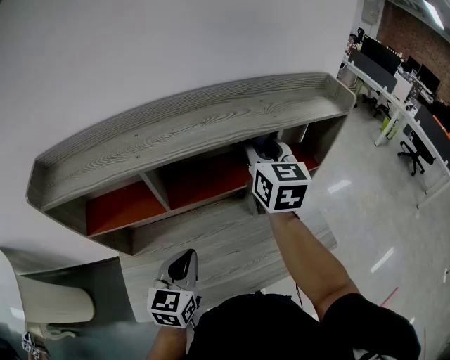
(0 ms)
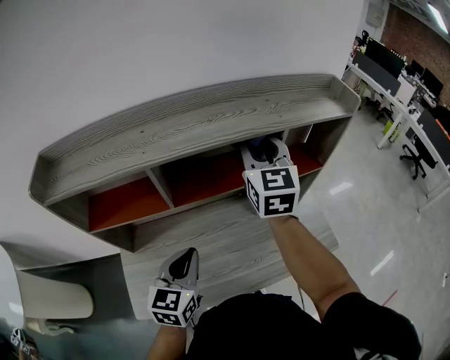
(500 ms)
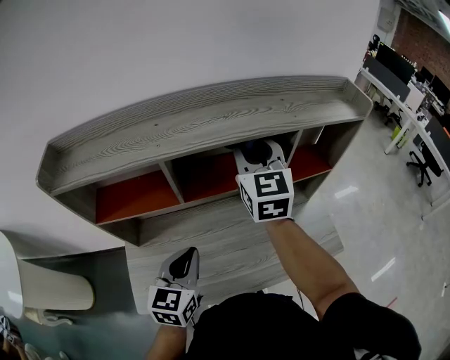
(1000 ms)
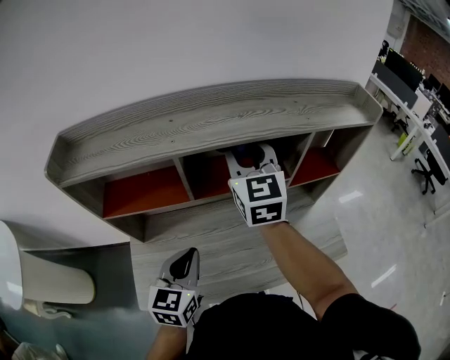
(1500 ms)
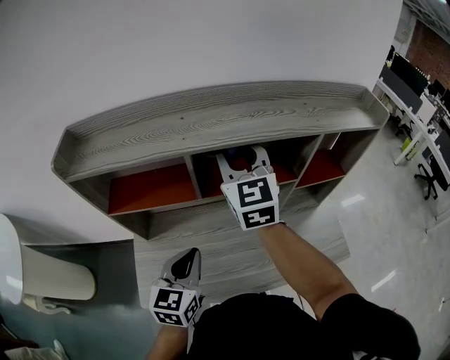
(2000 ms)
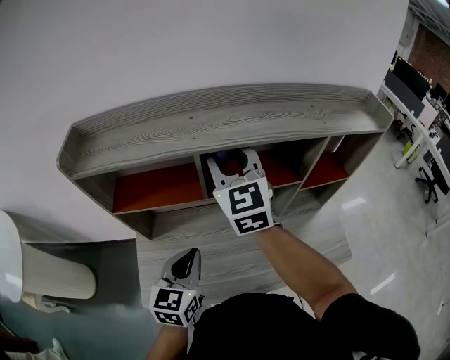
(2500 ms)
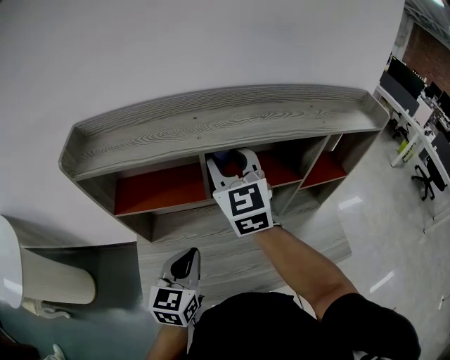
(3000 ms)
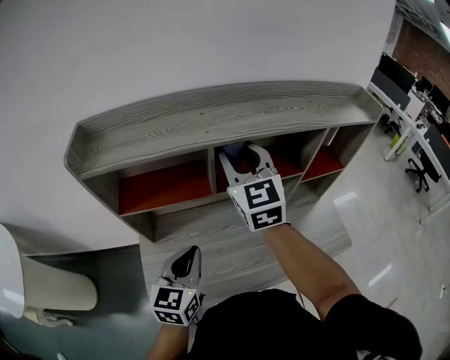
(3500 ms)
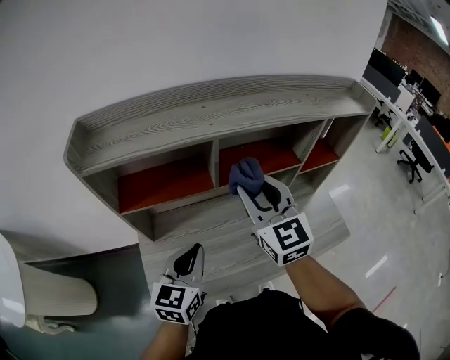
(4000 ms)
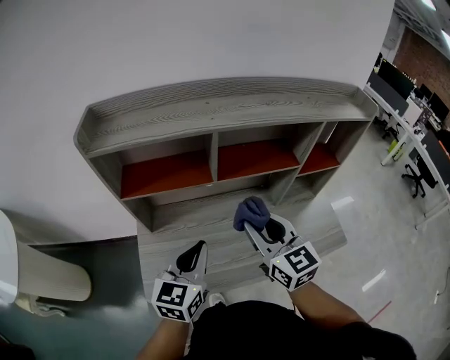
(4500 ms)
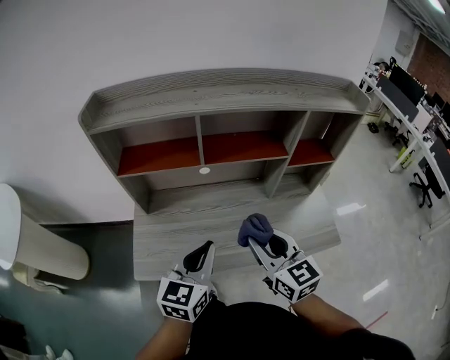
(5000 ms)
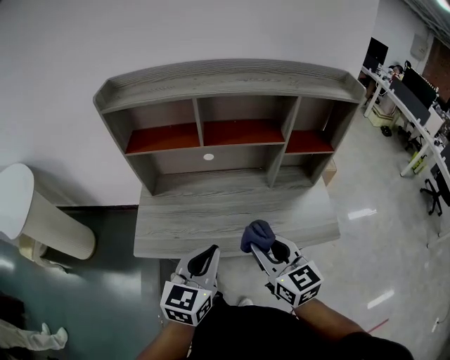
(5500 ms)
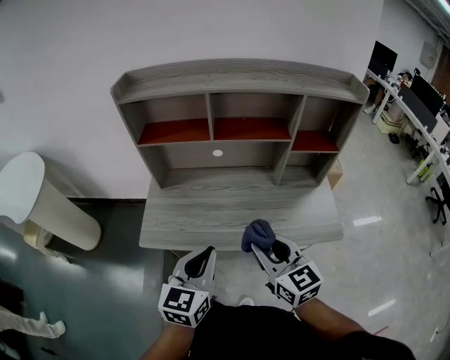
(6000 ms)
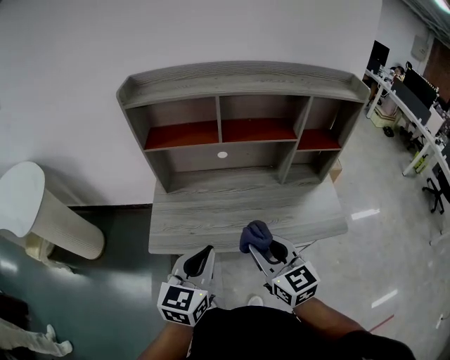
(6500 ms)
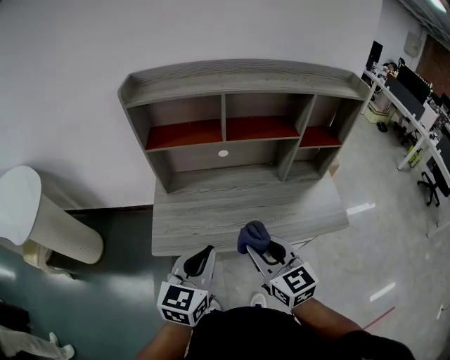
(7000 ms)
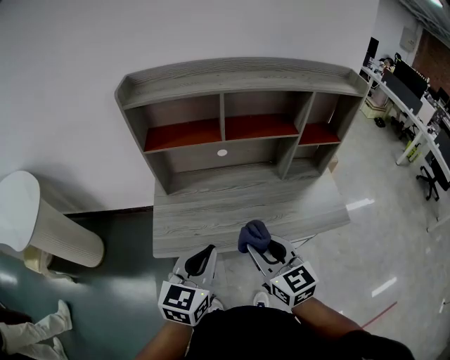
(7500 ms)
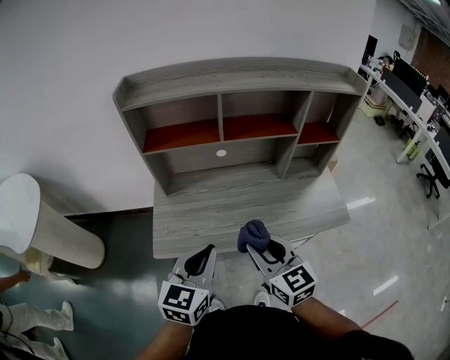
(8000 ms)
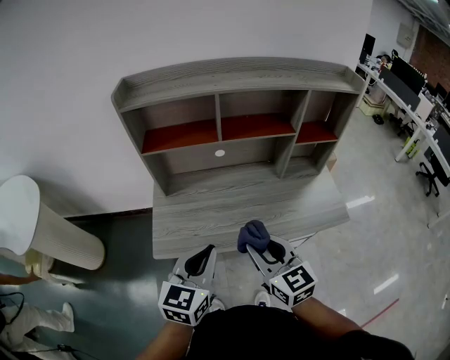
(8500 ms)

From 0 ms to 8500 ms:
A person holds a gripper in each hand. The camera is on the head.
From 0 ms to 2000 ms: The left gripper heads to the left, covering some 5 cm; the right gripper heads to the left, covering about 15 cm, and rotates about 20 degrees.
From 2000 ms to 4000 ms: The right gripper is displaced backward and downward by about 10 cm, while the left gripper travels to the left by roughly 5 cm.
From 4000 ms to 6500 ms: Both grippers travel together backward, about 25 cm. The right gripper swivels roughly 30 degrees.
From 6500 ms to 8500 ms: The grippers move only a little.

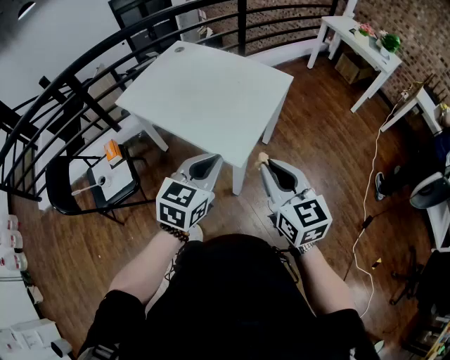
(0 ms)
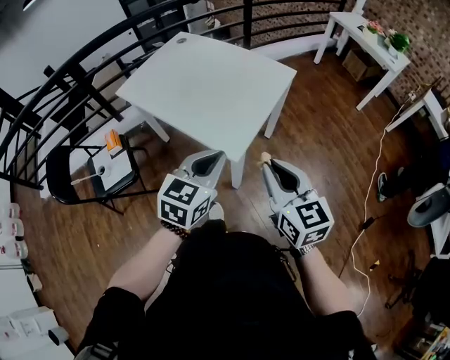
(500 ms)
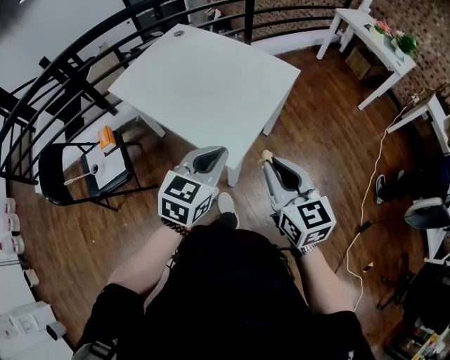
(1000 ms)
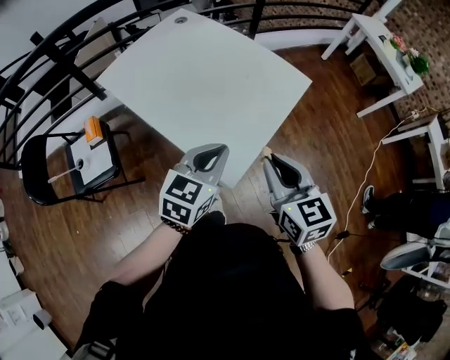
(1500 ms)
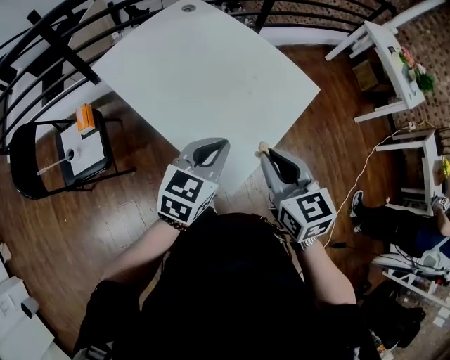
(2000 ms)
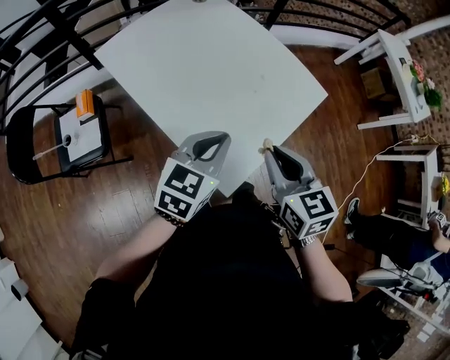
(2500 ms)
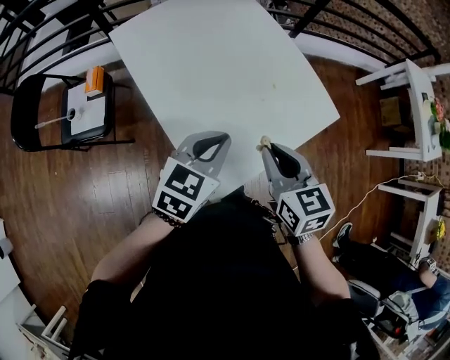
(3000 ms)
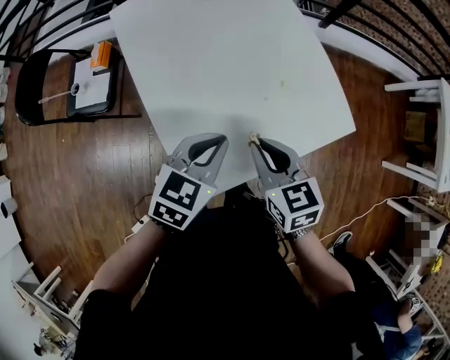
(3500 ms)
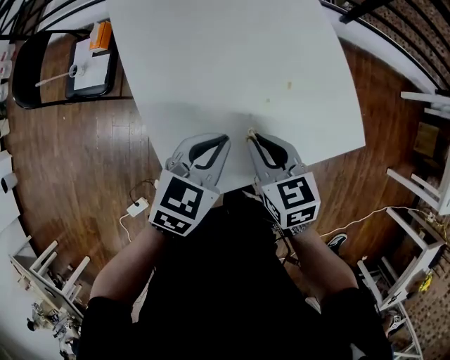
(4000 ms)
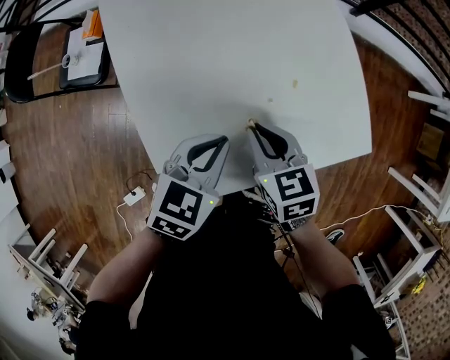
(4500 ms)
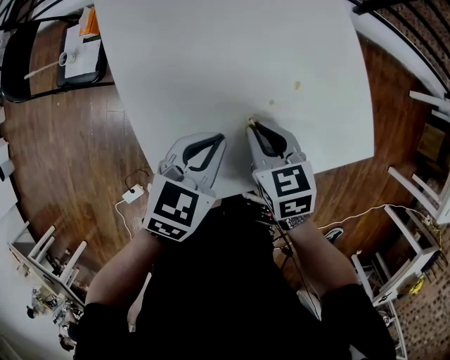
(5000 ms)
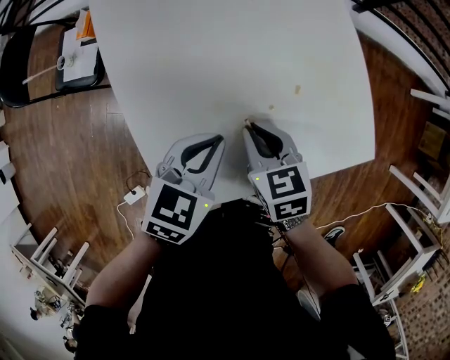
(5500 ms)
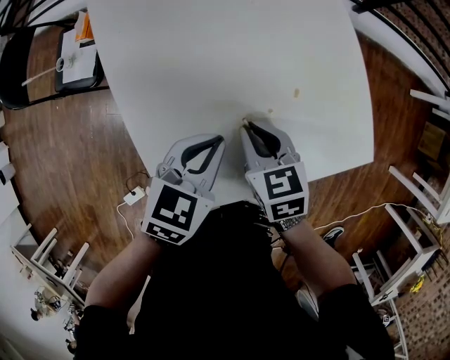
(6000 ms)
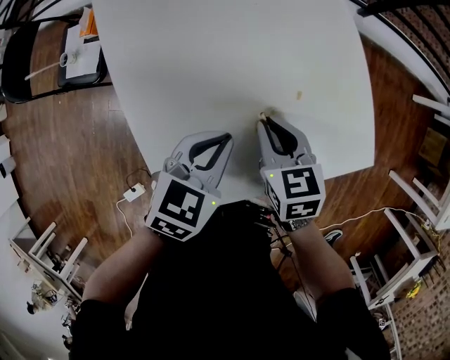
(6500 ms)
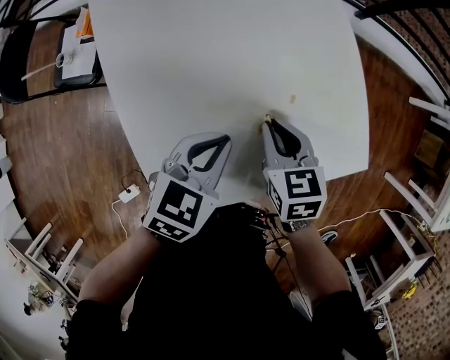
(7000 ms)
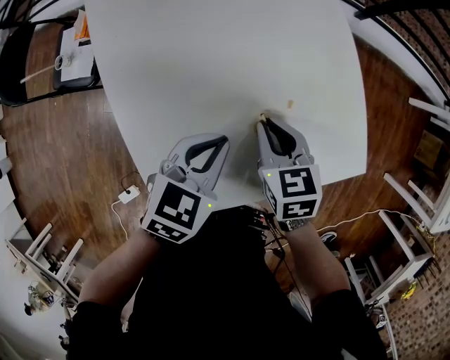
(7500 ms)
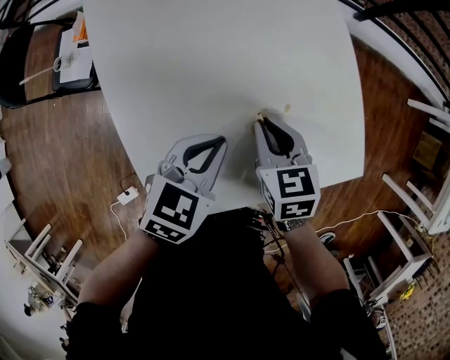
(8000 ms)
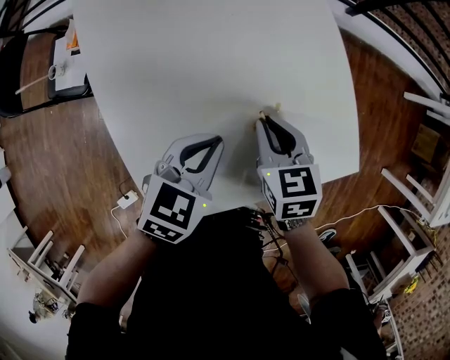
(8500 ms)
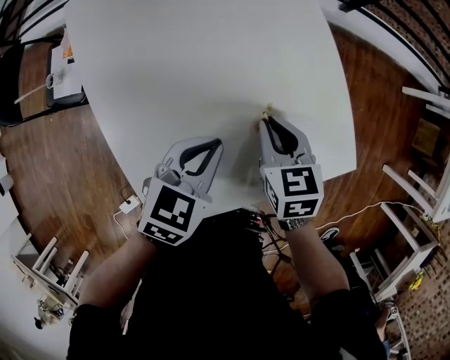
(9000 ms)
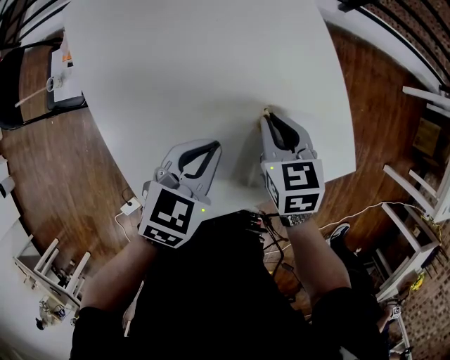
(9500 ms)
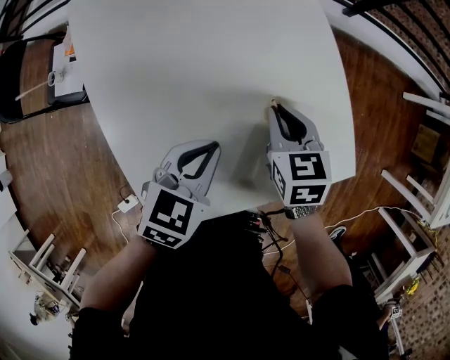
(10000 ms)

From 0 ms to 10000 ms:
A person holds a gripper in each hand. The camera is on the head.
From 0 ms to 2000 ms: Both grippers travel together forward, roughly 20 cm.
From 2000 ms to 4000 ms: The right gripper goes roughly 15 cm downward, and turns by about 40 degrees, while the left gripper changes place by some 15 cm, and turns by approximately 30 degrees.
From 4000 ms to 6000 ms: The left gripper changes place by approximately 5 cm. The right gripper shifts roughly 10 cm downward and forward.
From 6000 ms to 8000 ms: The right gripper moves forward, roughly 5 cm.
From 8000 ms to 10000 ms: The right gripper heads forward and to the right, covering some 10 cm.

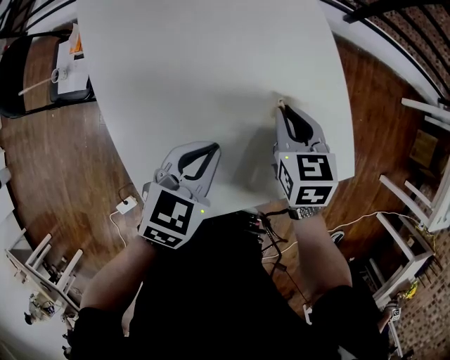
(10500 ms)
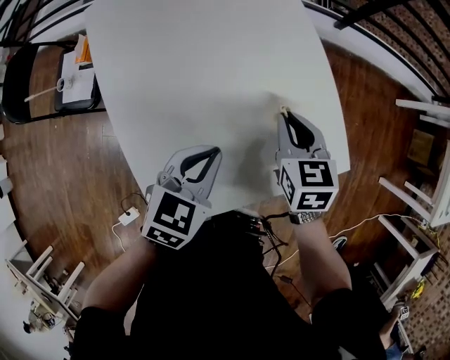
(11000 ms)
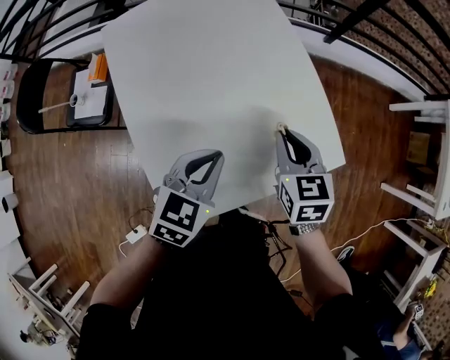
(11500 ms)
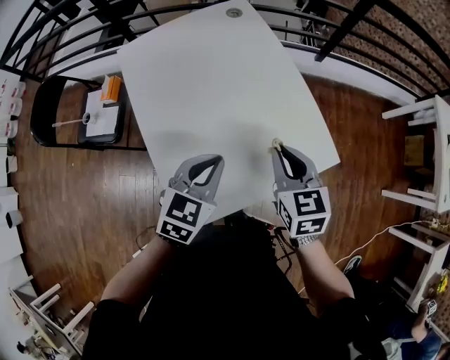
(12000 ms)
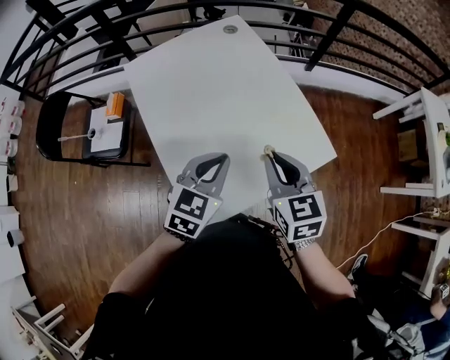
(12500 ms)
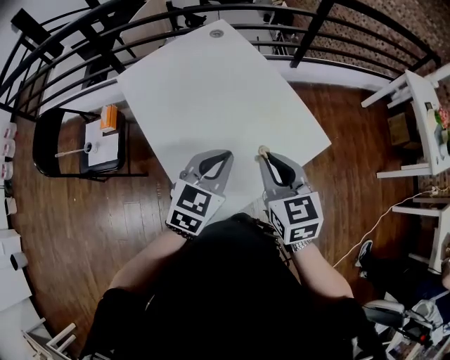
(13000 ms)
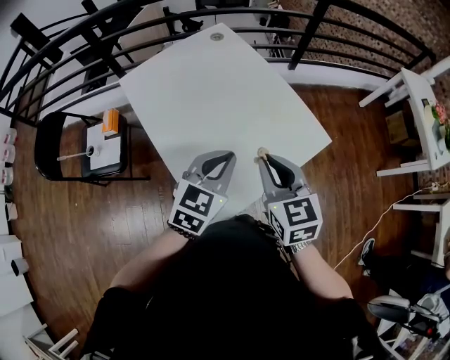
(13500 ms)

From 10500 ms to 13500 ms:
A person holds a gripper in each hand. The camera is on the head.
From 10500 ms to 12000 ms: The left gripper shifts approximately 10 cm upward and backward, while the right gripper moves upward and backward, some 20 cm.
From 12000 ms to 13500 ms: The right gripper shifts about 15 cm backward, upward and to the left. Meanwhile the left gripper goes about 5 cm upward.

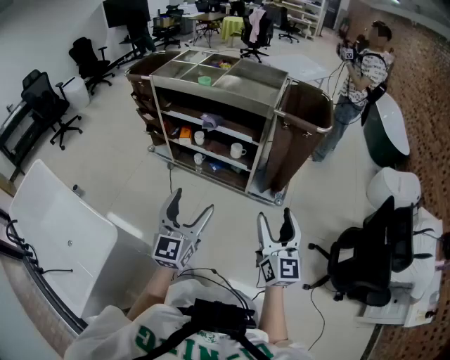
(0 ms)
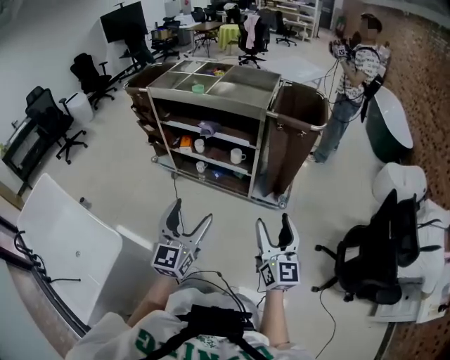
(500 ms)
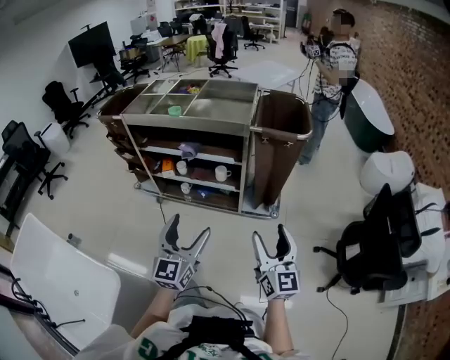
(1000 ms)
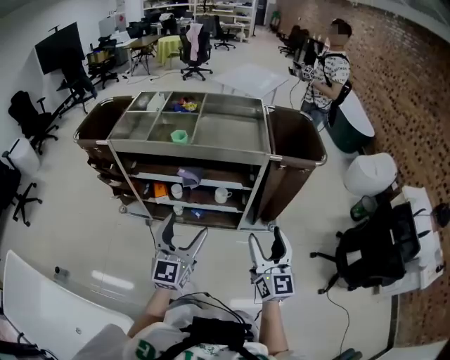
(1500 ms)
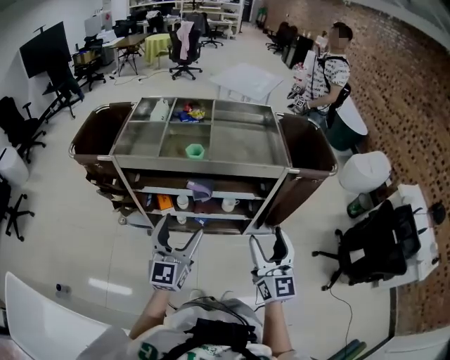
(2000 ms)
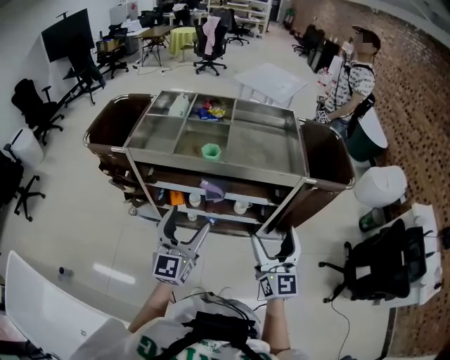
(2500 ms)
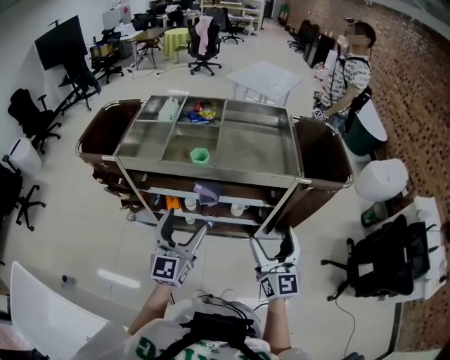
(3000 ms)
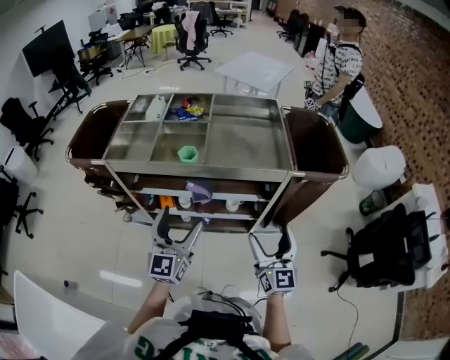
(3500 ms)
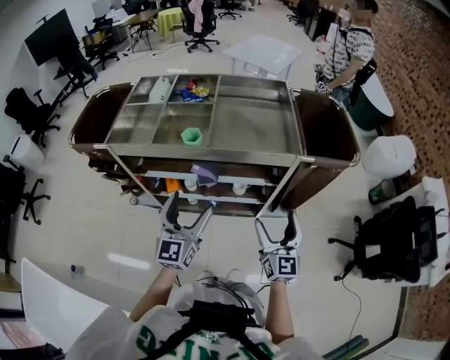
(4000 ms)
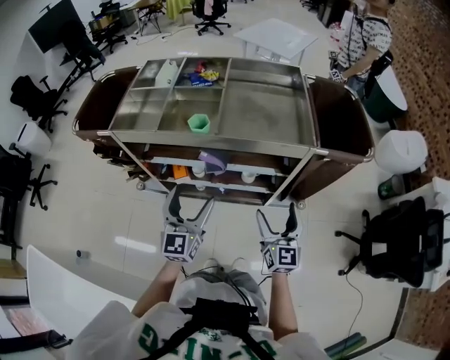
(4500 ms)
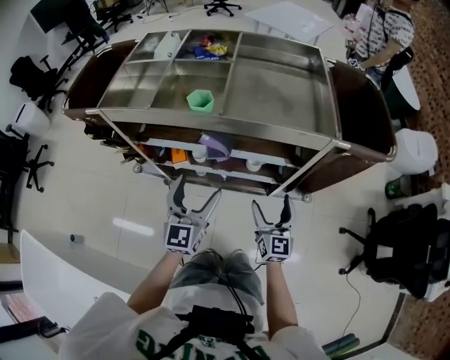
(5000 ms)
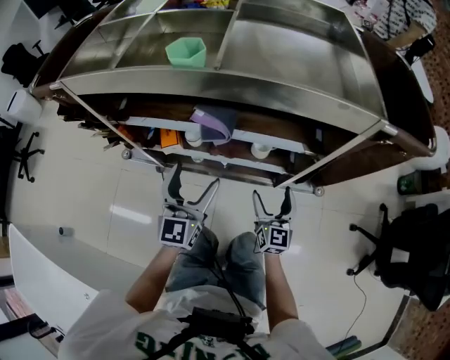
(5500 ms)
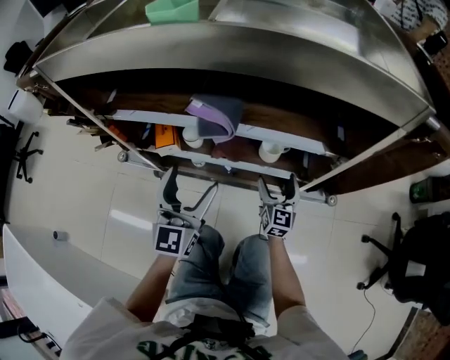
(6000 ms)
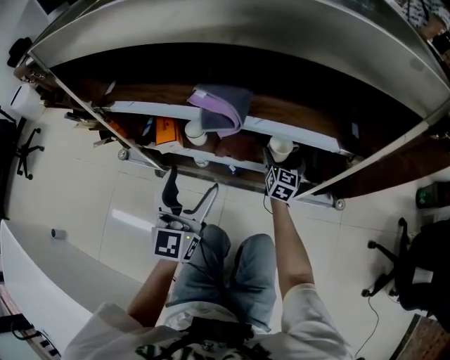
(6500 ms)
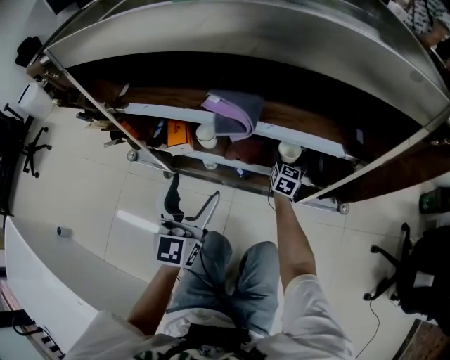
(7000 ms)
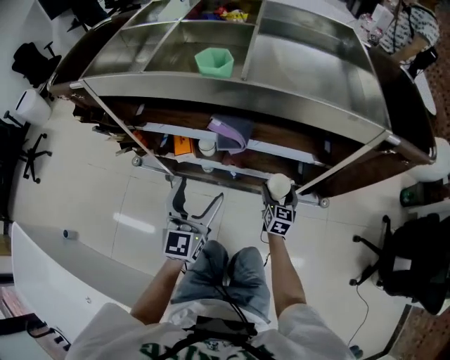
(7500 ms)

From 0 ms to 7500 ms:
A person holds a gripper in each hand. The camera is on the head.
From 0 ms to 2000 ms: The grippers both shift forward and to the left by approximately 40 cm.
From 2000 ms to 4000 ms: The left gripper heads forward, covering some 10 cm. The right gripper shifts approximately 15 cm downward, forward and to the right.
From 4000 ms to 5500 ms: The grippers both shift downward by approximately 30 cm.
From 5500 ms to 7500 ms: The left gripper moves approximately 10 cm downward and comes back, while the right gripper shifts some 10 cm downward, and reaches about 25 cm forward, then returns.
